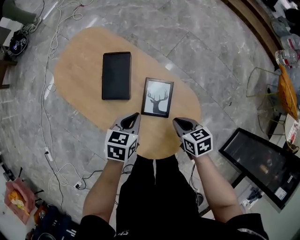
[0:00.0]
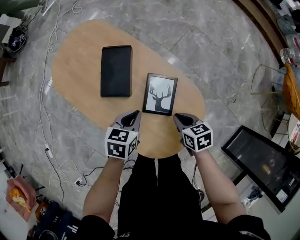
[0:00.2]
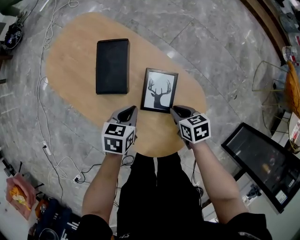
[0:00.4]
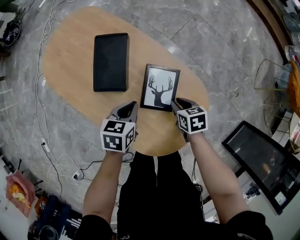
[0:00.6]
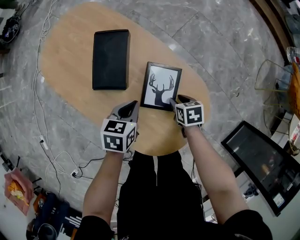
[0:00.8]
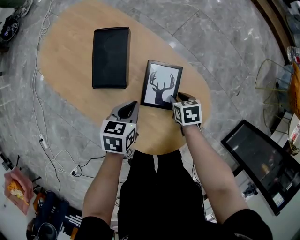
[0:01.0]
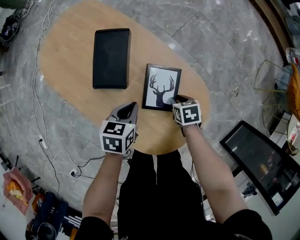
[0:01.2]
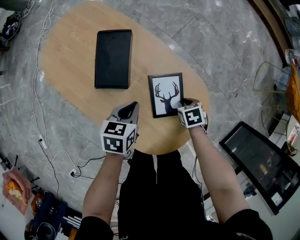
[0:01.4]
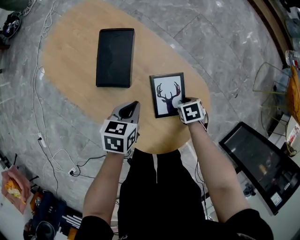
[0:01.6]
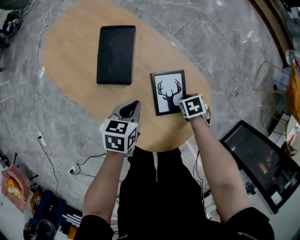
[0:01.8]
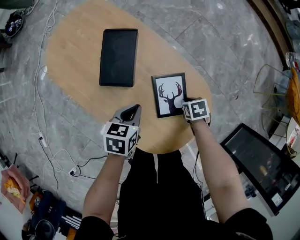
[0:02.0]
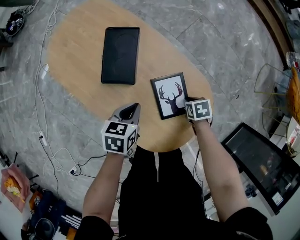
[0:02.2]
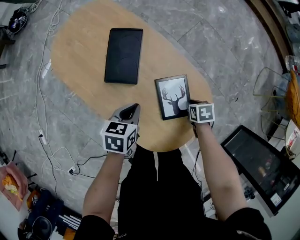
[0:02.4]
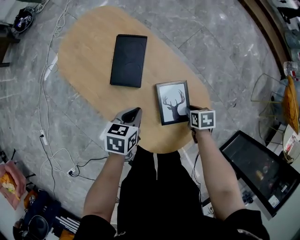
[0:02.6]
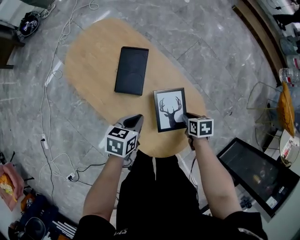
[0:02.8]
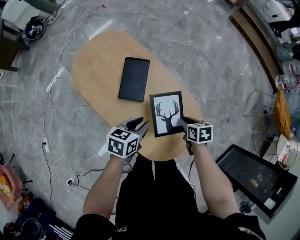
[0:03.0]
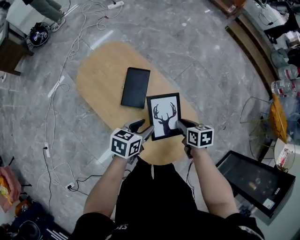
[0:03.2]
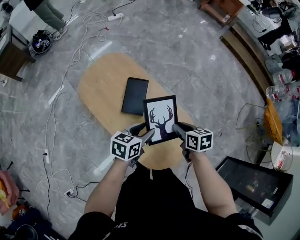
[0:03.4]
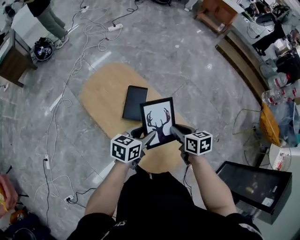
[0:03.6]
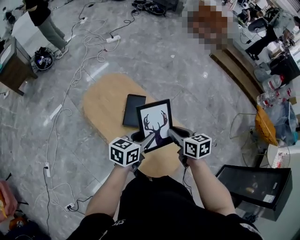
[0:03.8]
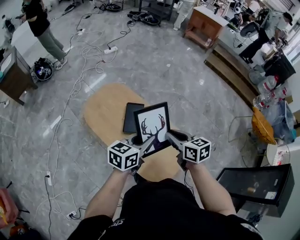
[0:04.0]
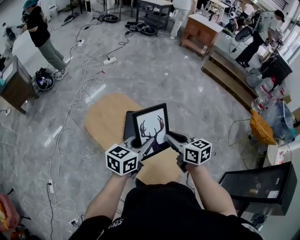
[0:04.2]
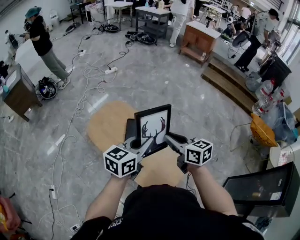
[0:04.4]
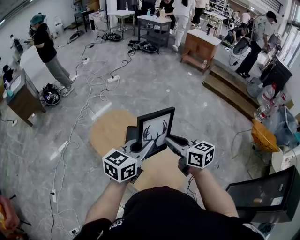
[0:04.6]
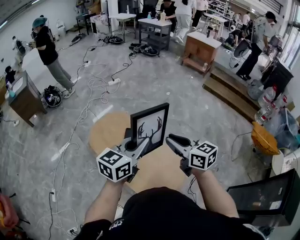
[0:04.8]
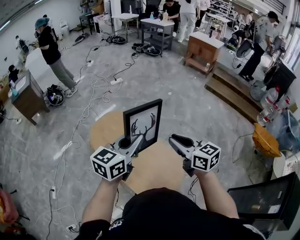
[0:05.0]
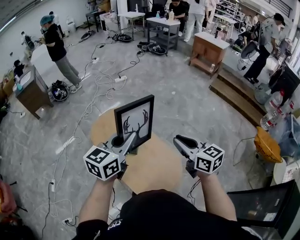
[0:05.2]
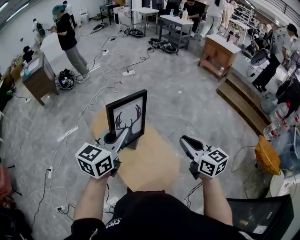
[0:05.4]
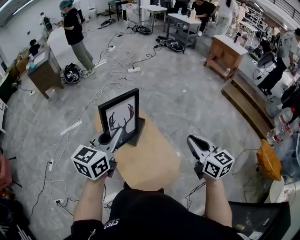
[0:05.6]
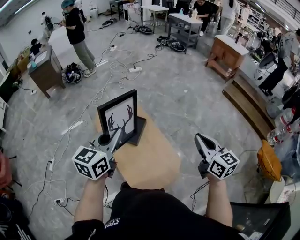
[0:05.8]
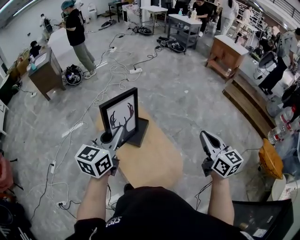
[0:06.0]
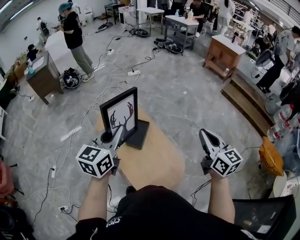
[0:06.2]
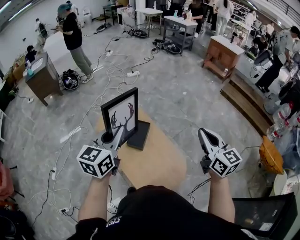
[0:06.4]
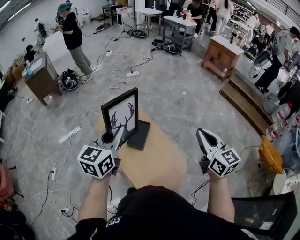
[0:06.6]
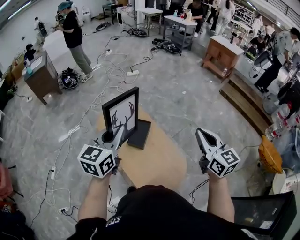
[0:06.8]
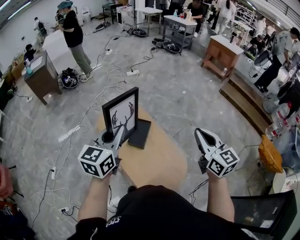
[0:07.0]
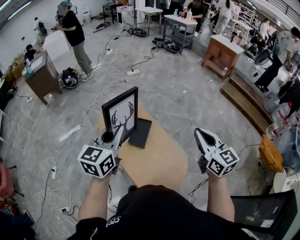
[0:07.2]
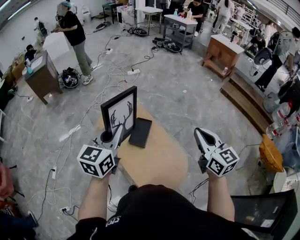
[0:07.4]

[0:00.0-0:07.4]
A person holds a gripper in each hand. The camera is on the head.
0:00.0 to 0:01.4: The right gripper travels downward by about 15 cm, and rotates some 30 degrees. The left gripper moves downward, about 10 cm.
0:01.4 to 0:03.0: The two grippers go roughly 15 cm upward. The right gripper changes its angle by some 20 degrees, while the left gripper opens its fingers.
0:03.0 to 0:04.4: The two grippers go some 35 cm upward. The right gripper points its fingers some 40 degrees further upward; the left gripper swivels roughly 30 degrees, and closes its fingers.
0:04.4 to 0:06.0: The left gripper travels upward by about 10 cm, and swivels about 30 degrees; the right gripper shifts some 20 cm to the right and upward.
0:06.0 to 0:07.4: The right gripper moves to the left, some 5 cm.

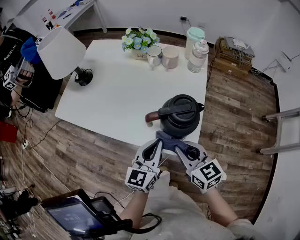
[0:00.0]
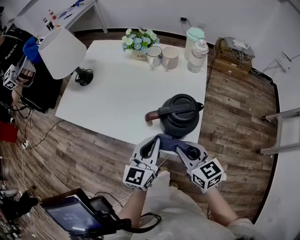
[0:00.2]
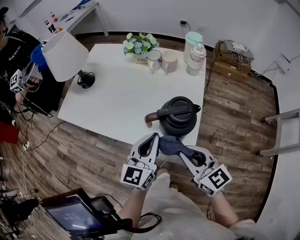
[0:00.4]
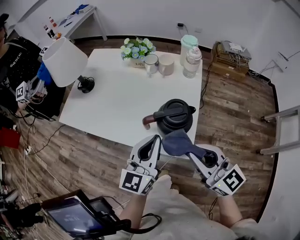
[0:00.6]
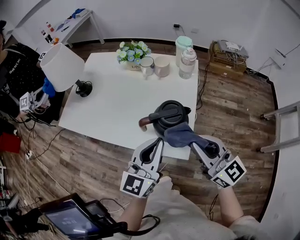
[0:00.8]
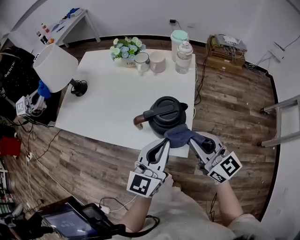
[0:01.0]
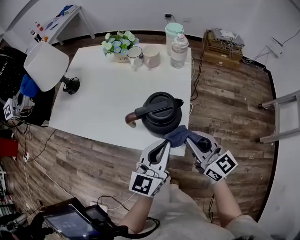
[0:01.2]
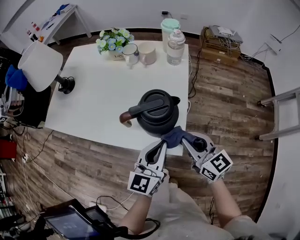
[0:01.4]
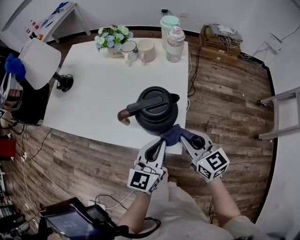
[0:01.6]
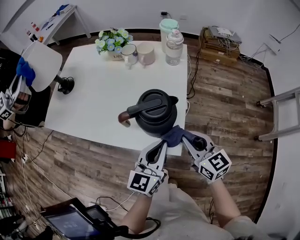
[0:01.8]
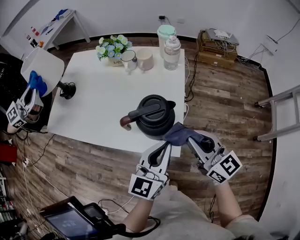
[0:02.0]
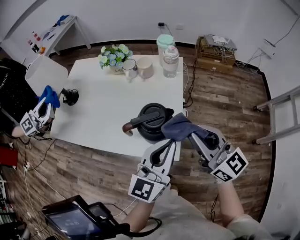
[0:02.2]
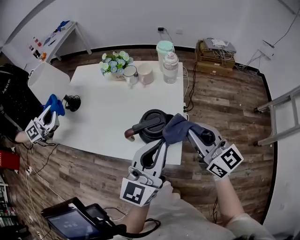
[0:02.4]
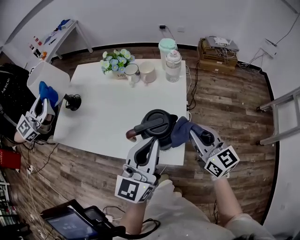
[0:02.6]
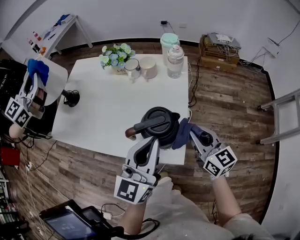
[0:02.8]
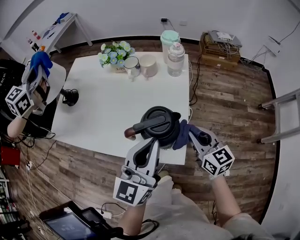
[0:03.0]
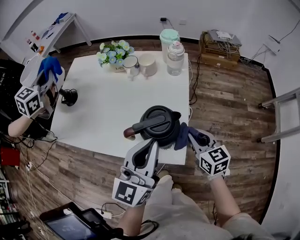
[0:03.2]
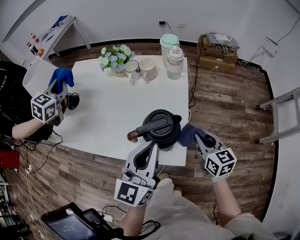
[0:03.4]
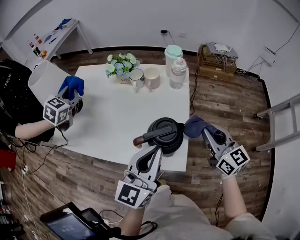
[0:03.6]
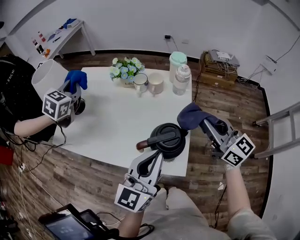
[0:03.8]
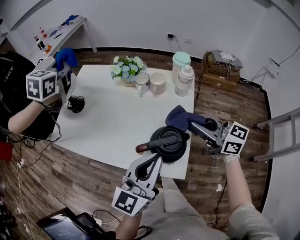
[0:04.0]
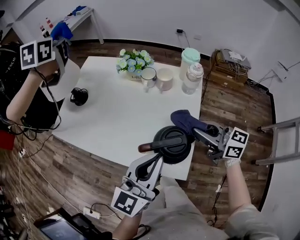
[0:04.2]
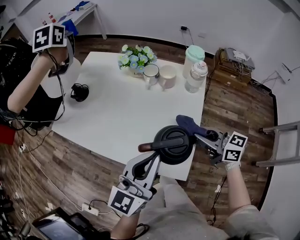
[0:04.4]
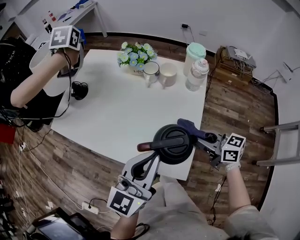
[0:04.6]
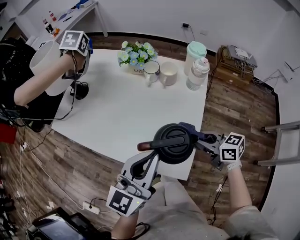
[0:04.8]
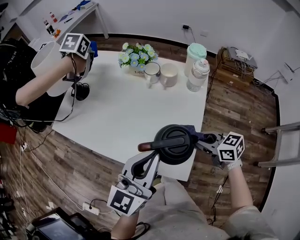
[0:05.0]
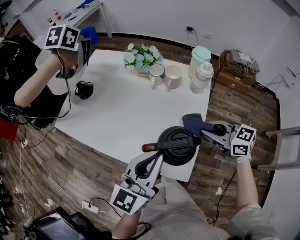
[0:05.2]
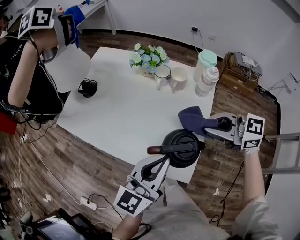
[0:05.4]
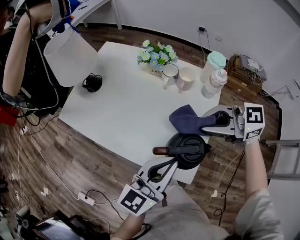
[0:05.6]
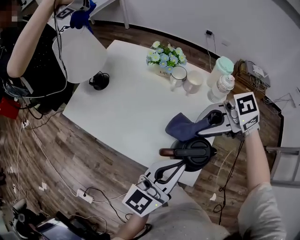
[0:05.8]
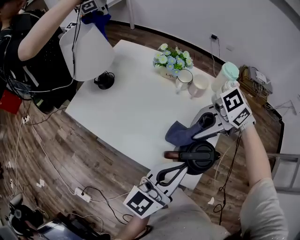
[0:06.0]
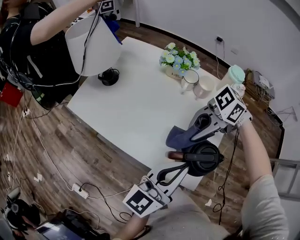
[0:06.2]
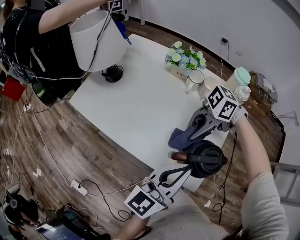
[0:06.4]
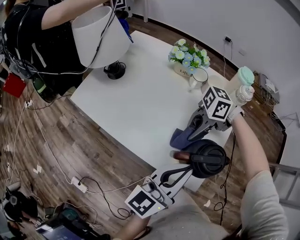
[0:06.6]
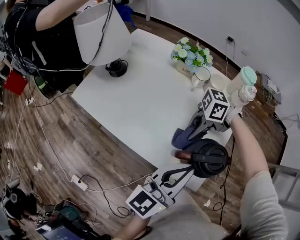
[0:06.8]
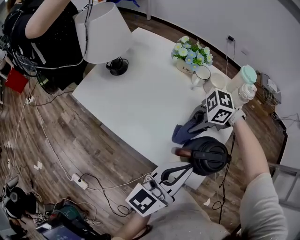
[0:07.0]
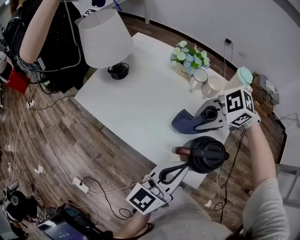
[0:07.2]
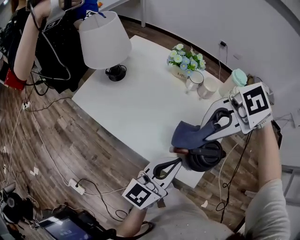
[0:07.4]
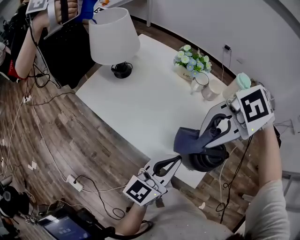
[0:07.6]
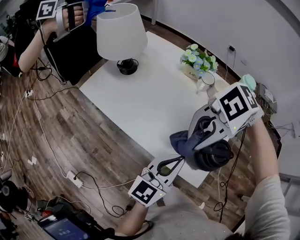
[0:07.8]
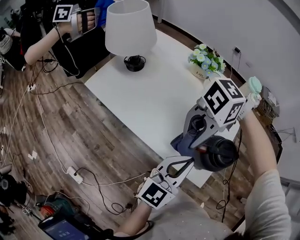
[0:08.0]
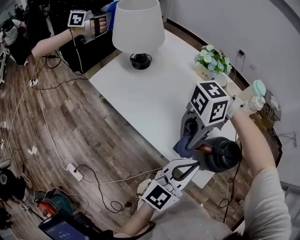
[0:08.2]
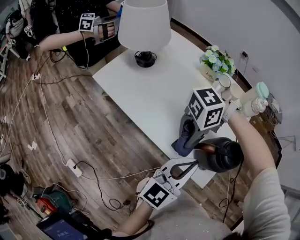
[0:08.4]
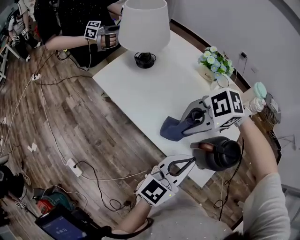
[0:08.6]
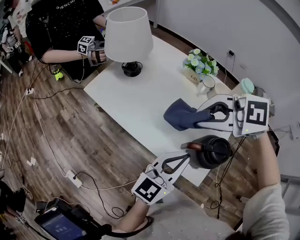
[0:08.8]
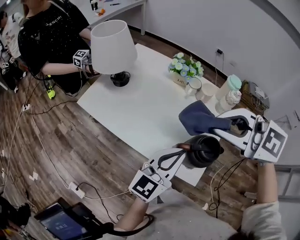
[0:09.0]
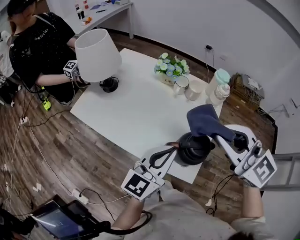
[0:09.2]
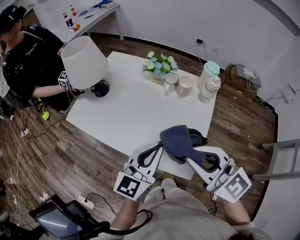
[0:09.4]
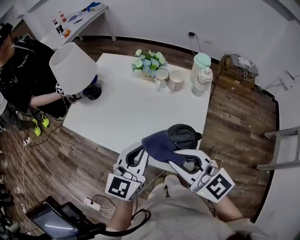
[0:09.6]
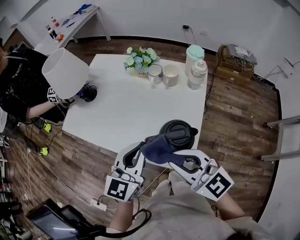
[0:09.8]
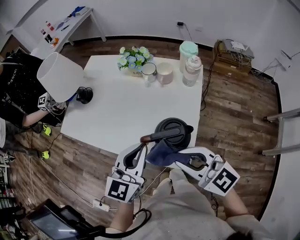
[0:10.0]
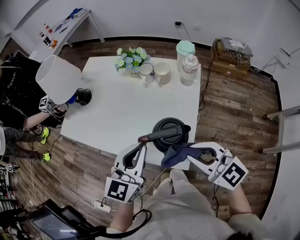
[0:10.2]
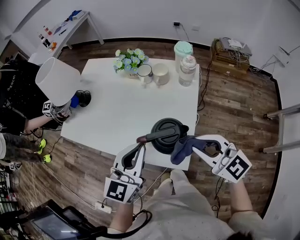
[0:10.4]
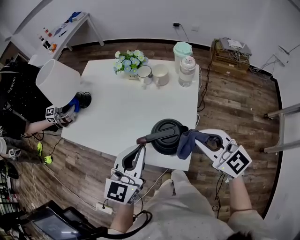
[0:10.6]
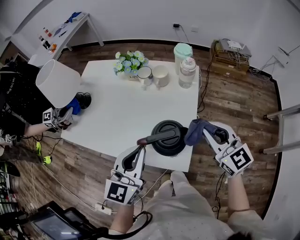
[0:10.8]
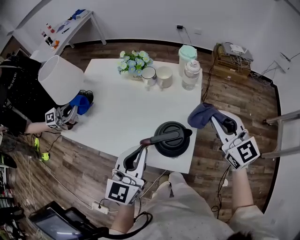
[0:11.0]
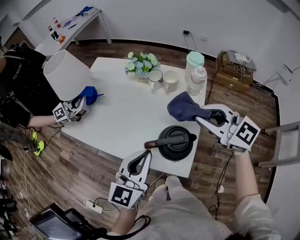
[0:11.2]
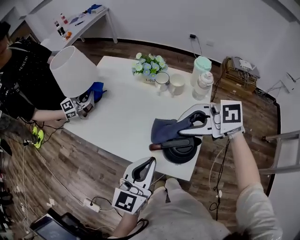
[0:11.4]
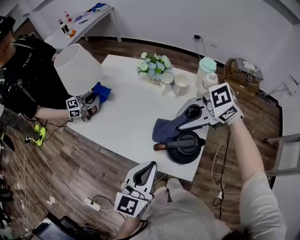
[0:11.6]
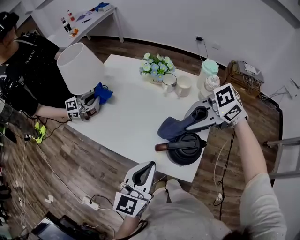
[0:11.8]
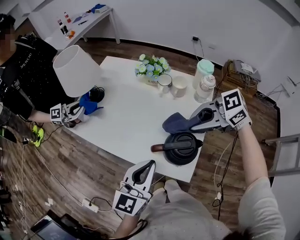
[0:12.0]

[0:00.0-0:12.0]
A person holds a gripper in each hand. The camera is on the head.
0:00.0 to 0:01.6: The two grippers go roughly 10 cm to the right. The left gripper goes upward and returns, about 10 cm each way. Meanwhile the right gripper travels upward and back again, about 15 cm each way.
0:01.6 to 0:03.0: The left gripper is displaced upward by roughly 15 cm. Meanwhile the right gripper travels forward by roughly 5 cm, and moves approximately 20 cm upward and comes back.
0:03.0 to 0:04.4: The right gripper goes up and down, approximately 20 cm each way, reversing 2 times, and changes its angle by some 30 degrees.
0:04.4 to 0:06.0: The right gripper moves up and down over approximately 20 cm, changing direction 2 times, and rotates some 70 degrees.
0:06.0 to 0:07.6: The right gripper moves upward, approximately 5 cm, and rotates approximately 30 degrees, while the left gripper changes place by roughly 5 cm.
0:07.6 to 0:09.0: The right gripper shifts some 10 cm upward, and swivels some 60 degrees.
0:09.0 to 0:10.4: The right gripper goes approximately 20 cm downward, to the right and backward, and rotates about 30 degrees.
0:10.4 to 0:12.0: The right gripper moves approximately 10 cm, and turns by some 50 degrees.

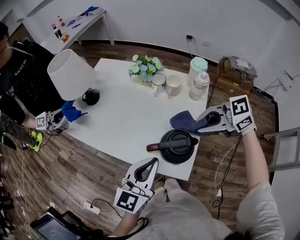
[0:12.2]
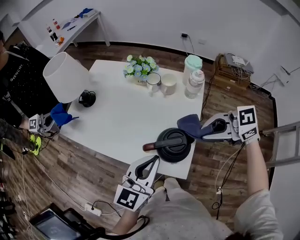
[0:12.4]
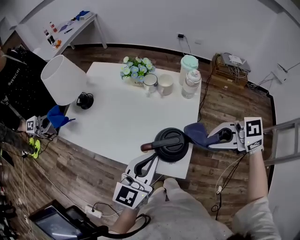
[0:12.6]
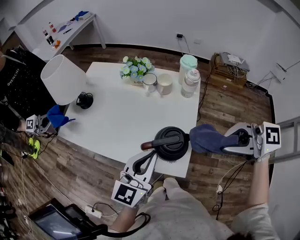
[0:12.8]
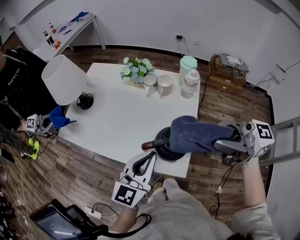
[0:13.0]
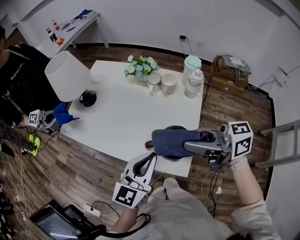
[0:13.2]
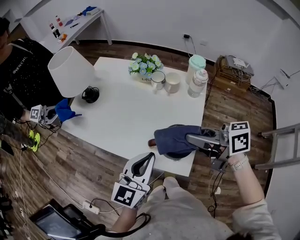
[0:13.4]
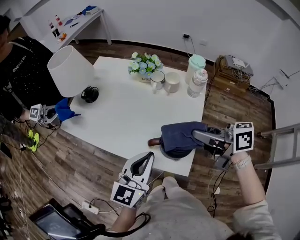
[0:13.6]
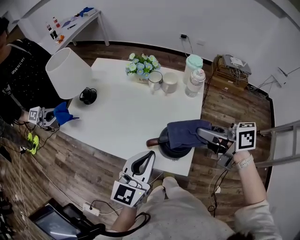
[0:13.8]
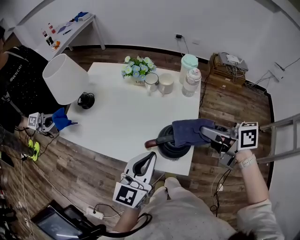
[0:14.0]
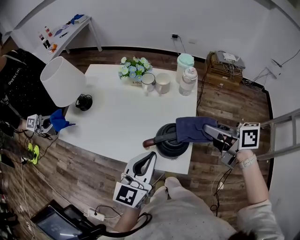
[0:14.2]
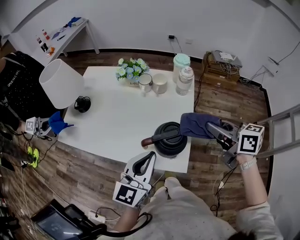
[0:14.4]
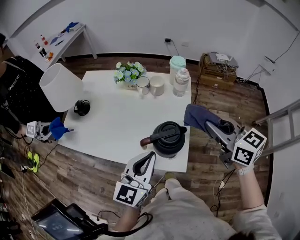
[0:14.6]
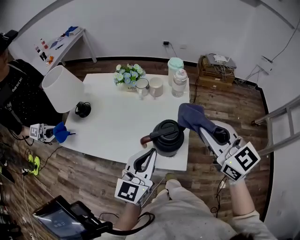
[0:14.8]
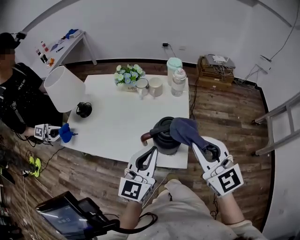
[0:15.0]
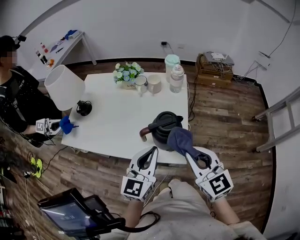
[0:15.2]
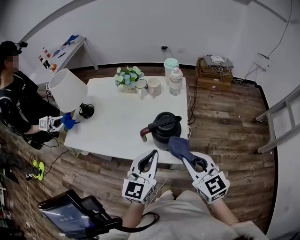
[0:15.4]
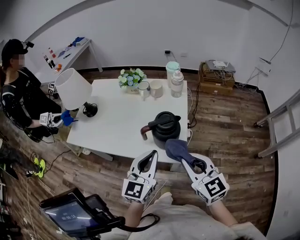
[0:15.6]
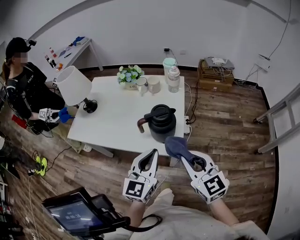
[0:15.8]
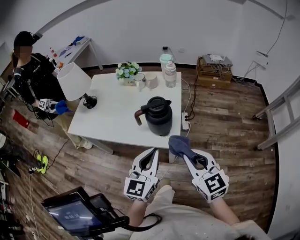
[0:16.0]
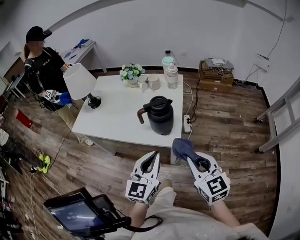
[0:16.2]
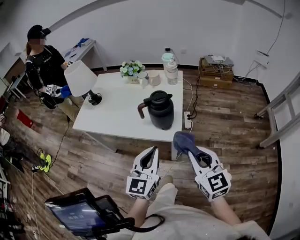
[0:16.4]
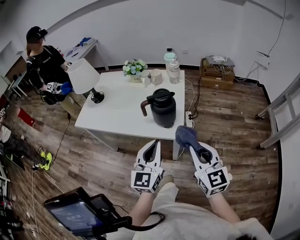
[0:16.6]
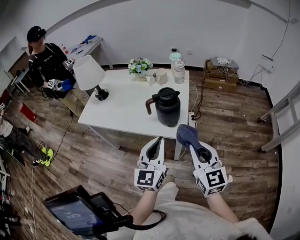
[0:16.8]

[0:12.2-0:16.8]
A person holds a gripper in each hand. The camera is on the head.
0:12.2 to 0:13.8: The right gripper goes upward and returns, about 15 cm each way, and turns by roughly 50 degrees.
0:13.8 to 0:15.2: The right gripper shifts approximately 15 cm backward, and rotates roughly 60 degrees; the left gripper ends up about 5 cm from where it was.
0:15.2 to 0:16.8: Both grippers move backward, roughly 15 cm.
